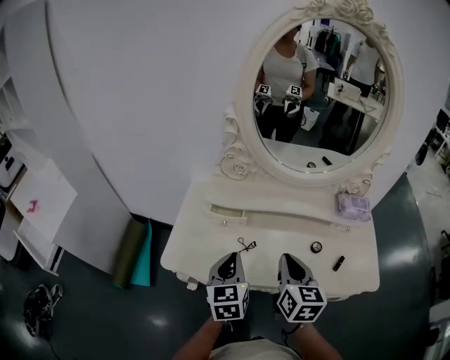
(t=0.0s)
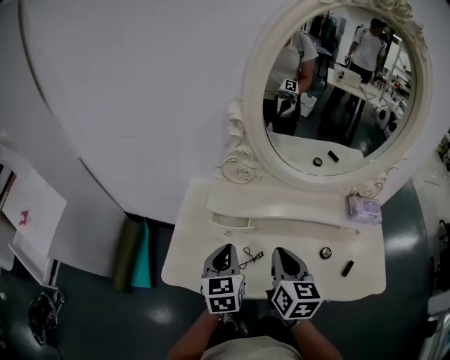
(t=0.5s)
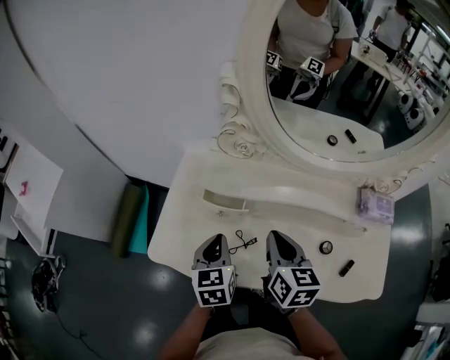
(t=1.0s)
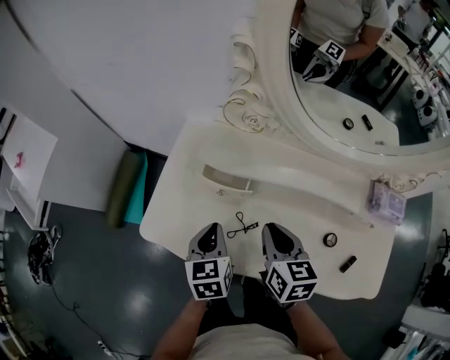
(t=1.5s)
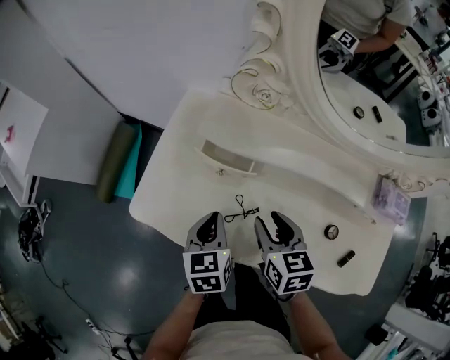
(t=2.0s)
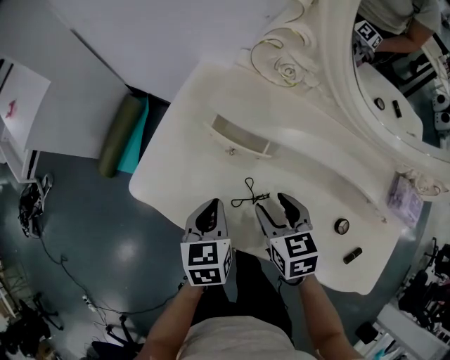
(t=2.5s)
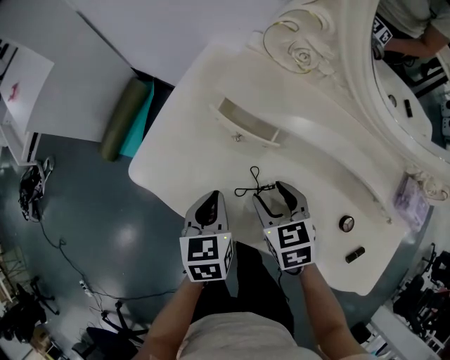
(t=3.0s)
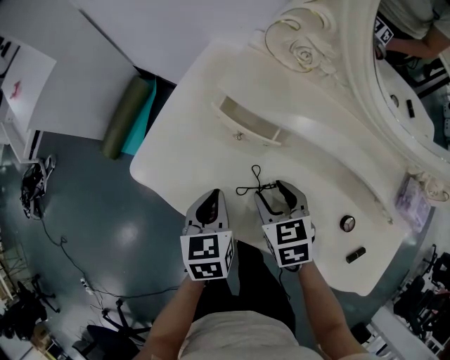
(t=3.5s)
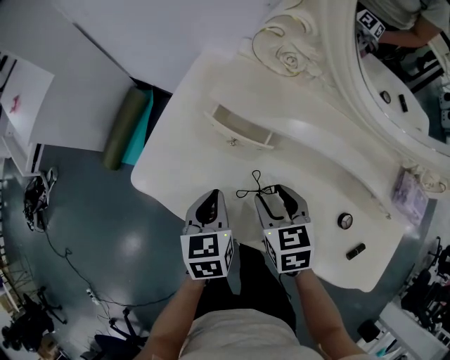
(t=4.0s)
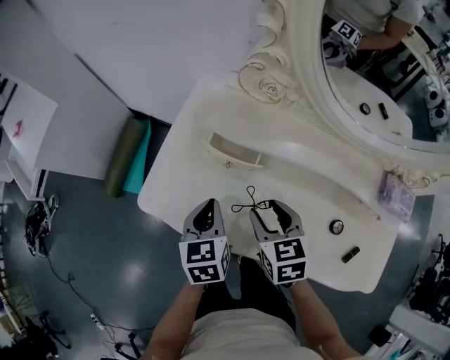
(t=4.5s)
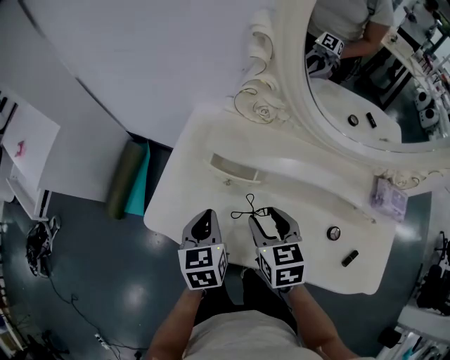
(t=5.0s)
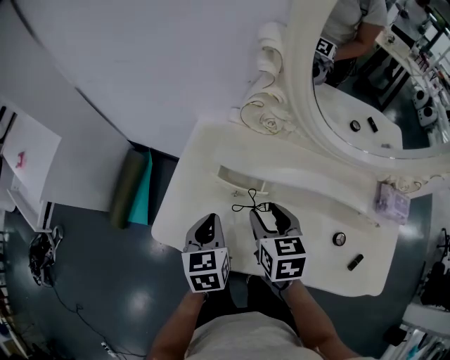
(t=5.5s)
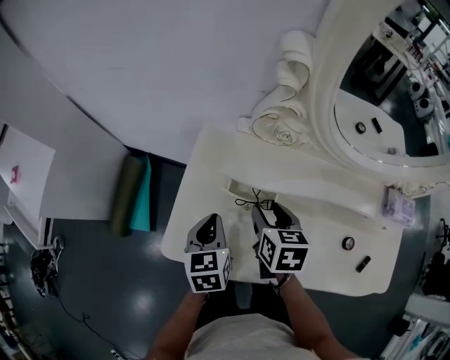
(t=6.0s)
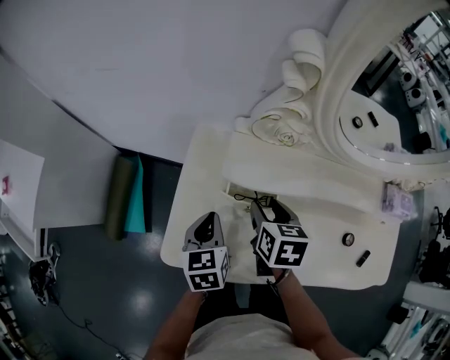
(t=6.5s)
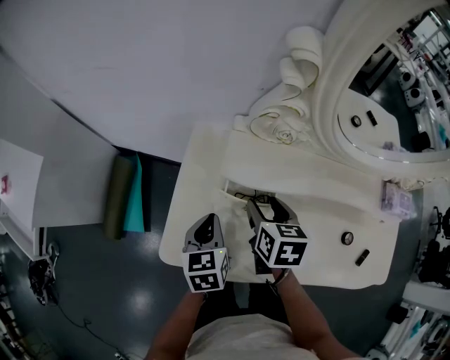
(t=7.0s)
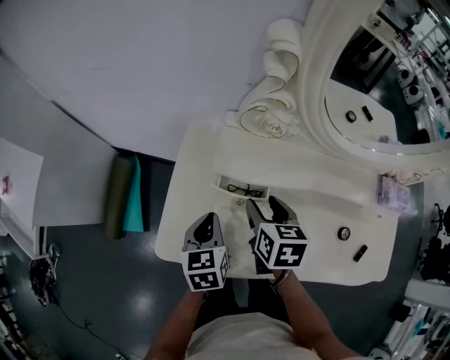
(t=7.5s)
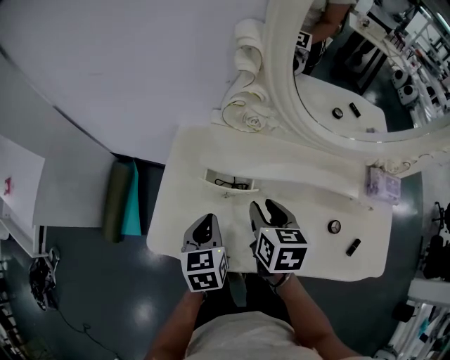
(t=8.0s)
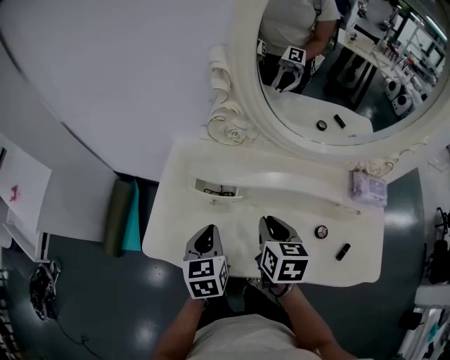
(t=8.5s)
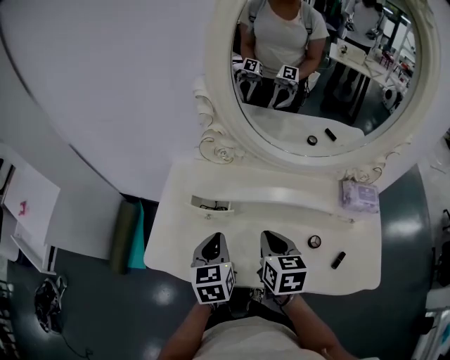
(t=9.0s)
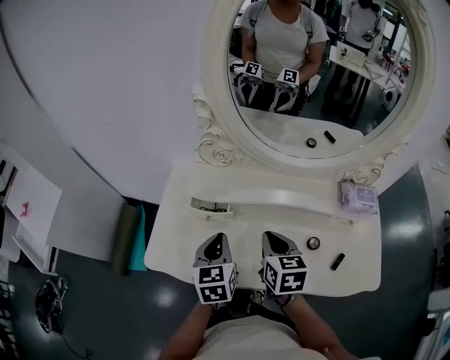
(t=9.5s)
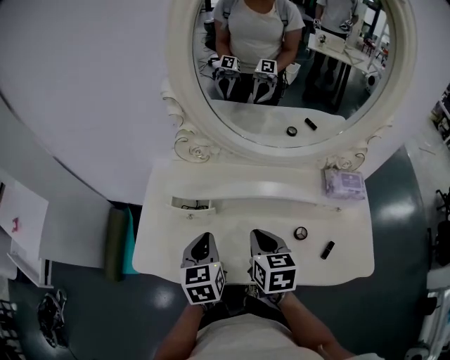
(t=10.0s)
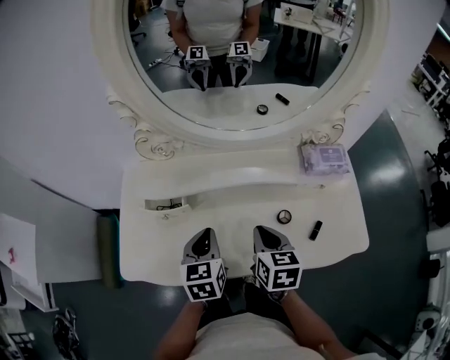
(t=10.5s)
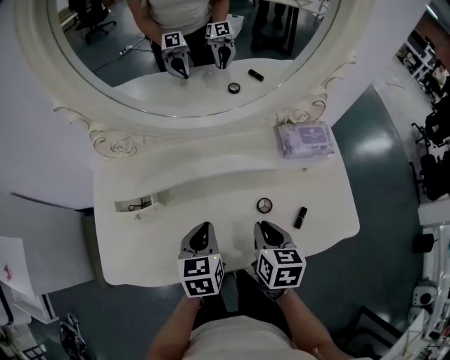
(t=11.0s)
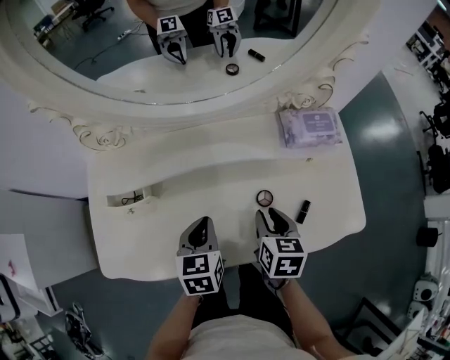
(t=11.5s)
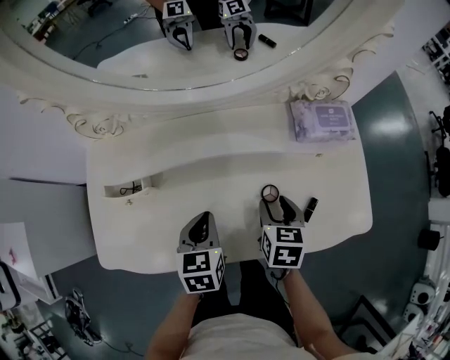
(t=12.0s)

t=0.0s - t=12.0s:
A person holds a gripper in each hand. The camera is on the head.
t=0.0s - t=2.0s: The grippers both shift downward and forward by about 15 cm. The right gripper rotates approximately 30 degrees, and opens, while the left gripper rotates about 20 degrees.
t=4.0s - t=6.0s: The left gripper shifts about 10 cm forward and to the left. Meanwhile the right gripper shifts roughly 10 cm forward and upward, and rotates some 30 degrees.
t=6.0s - t=8.0s: The right gripper ends up roughly 5 cm from where it was. Meanwhile the left gripper moves roughly 5 cm.
t=8.0s - t=10.0s: The right gripper moves to the right and backward, approximately 15 cm, and closes up, while the left gripper goes about 10 cm to the right and upward.
t=10.0s - t=12.0s: The two grippers go about 20 cm to the right and downward. The left gripper changes its angle by some 20 degrees, while the right gripper turns by some 20 degrees, and opens its fingers.

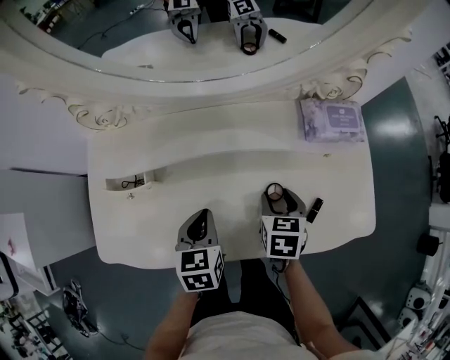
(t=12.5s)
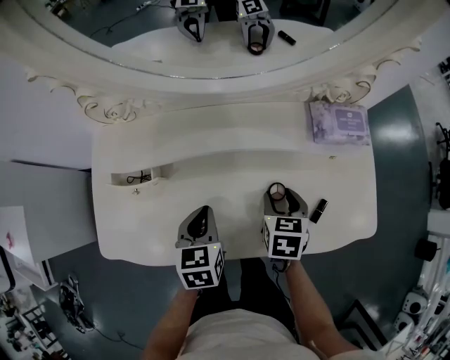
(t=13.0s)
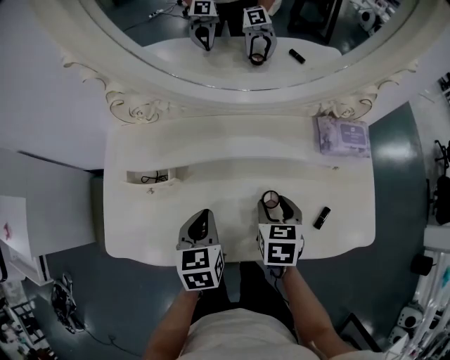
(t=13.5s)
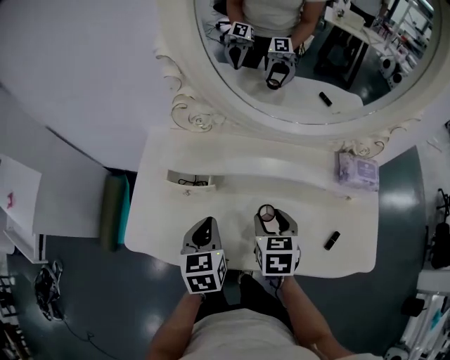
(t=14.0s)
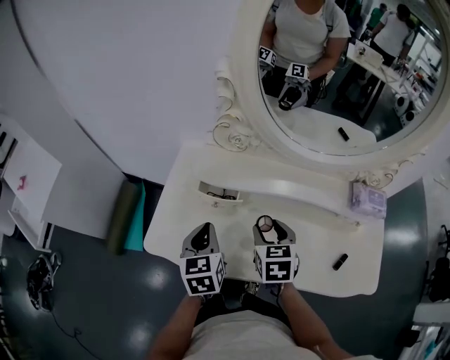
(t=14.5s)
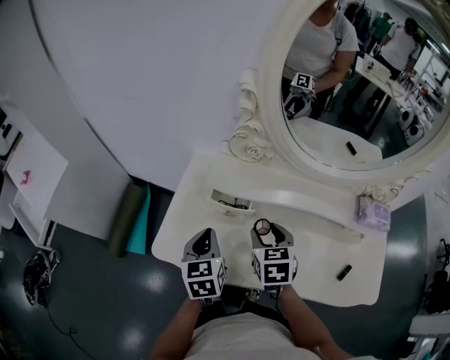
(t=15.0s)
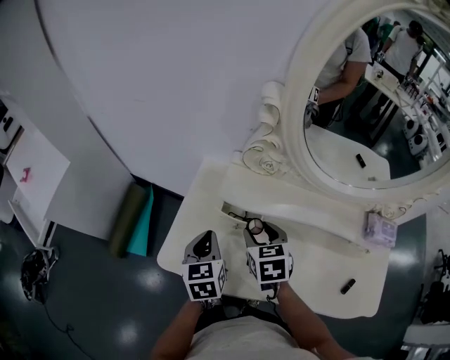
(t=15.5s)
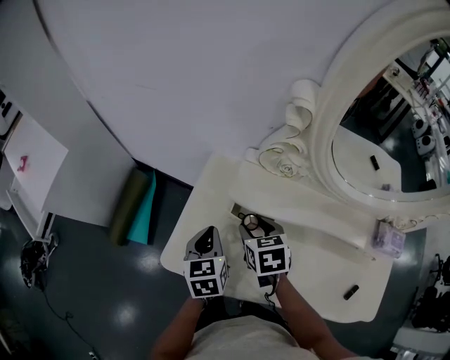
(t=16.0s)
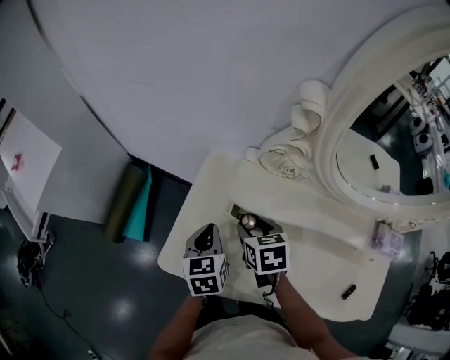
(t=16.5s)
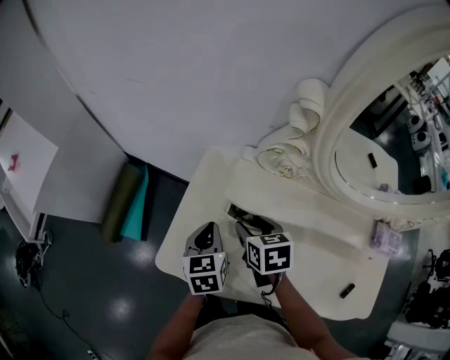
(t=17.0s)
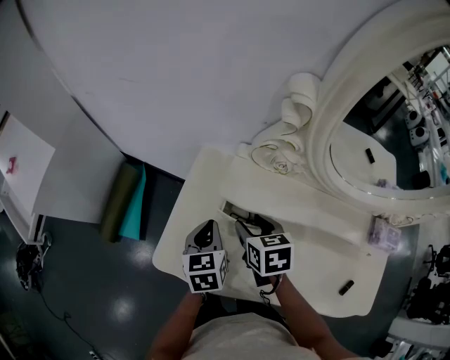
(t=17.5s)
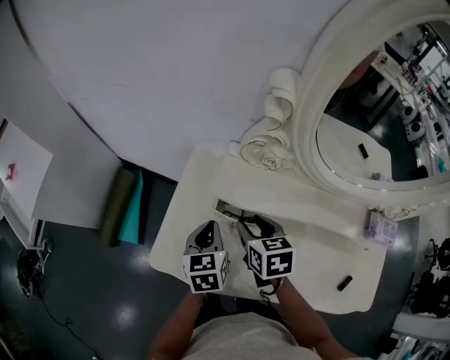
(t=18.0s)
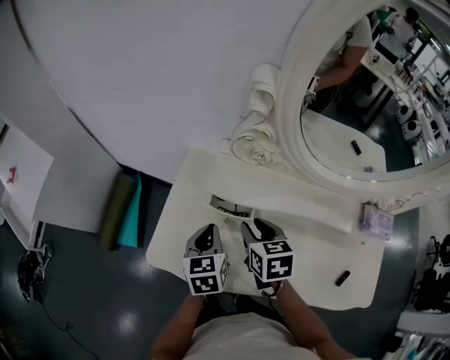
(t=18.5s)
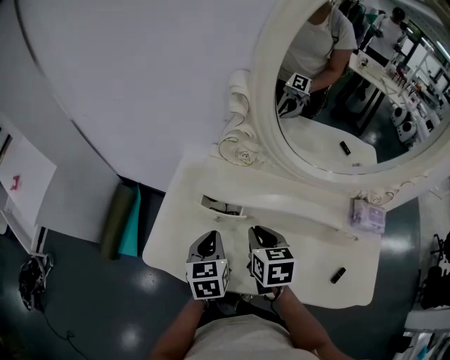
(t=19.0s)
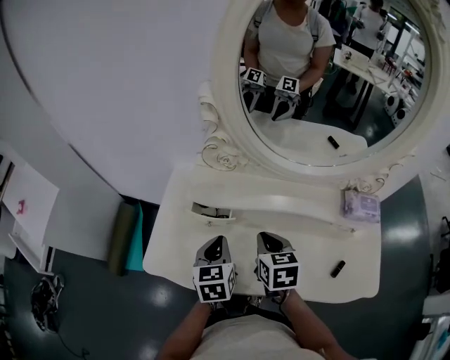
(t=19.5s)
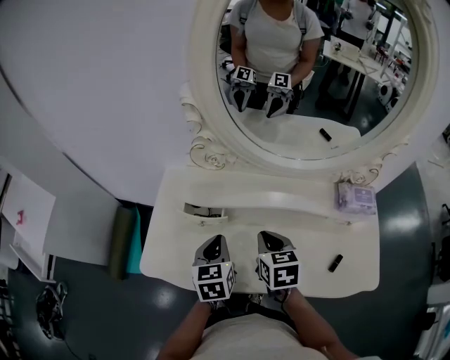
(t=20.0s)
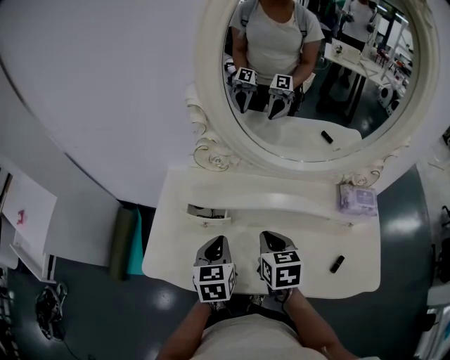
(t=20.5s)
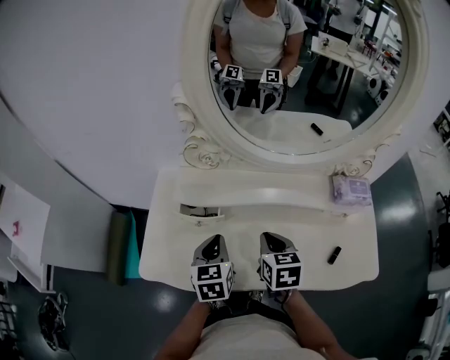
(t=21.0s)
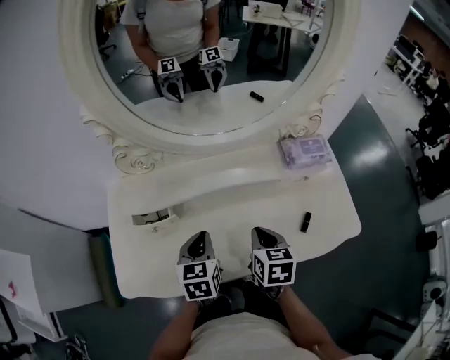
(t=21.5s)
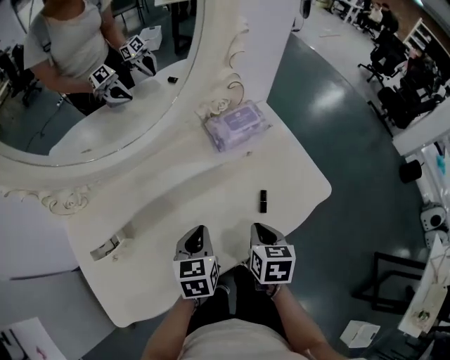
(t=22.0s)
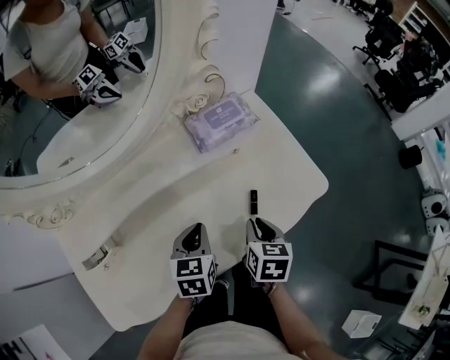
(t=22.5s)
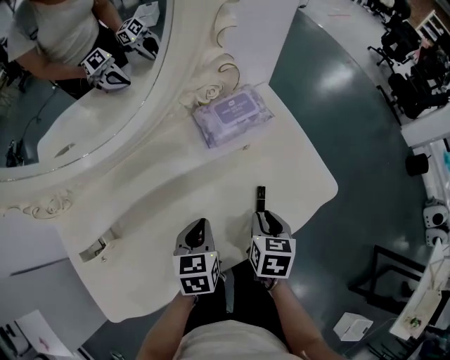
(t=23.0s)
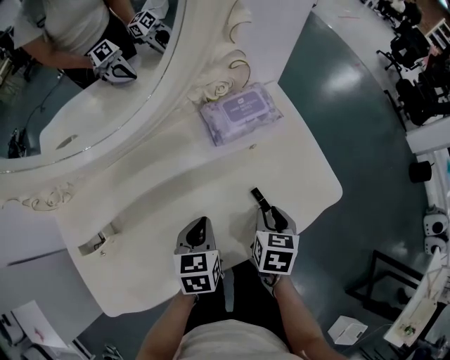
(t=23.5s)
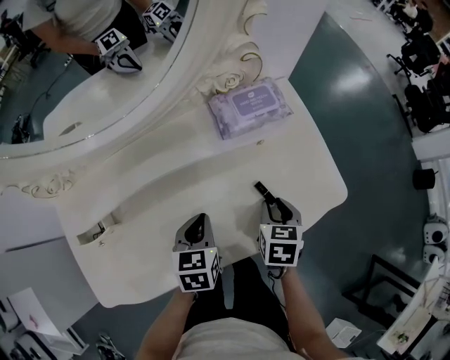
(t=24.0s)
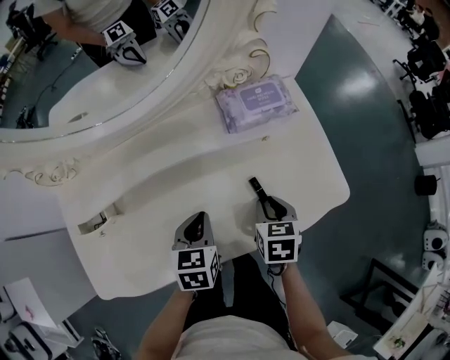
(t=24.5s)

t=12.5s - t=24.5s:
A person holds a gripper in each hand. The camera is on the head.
t=12.5s - t=14.5s: Both grippers travel together to the left and upward, about 25 cm. The right gripper turns by about 30 degrees. The left gripper changes its angle by approximately 30 degrees.
t=14.5s - t=16.5s: The right gripper travels to the left and forward by some 20 cm. Meanwhile the left gripper goes roughly 10 cm forward and to the left.
t=16.5s - t=18.5s: The grippers both shift to the right by roughly 5 cm.
t=18.5s - t=20.5s: The right gripper moves to the right and backward, approximately 15 cm, and closes; the left gripper is displaced to the right by roughly 10 cm.
t=20.5s - t=22.5s: The left gripper shifts by about 30 cm, and changes its angle by roughly 40 degrees. The right gripper shifts by roughly 35 cm, and swivels approximately 50 degrees.
t=22.5s - t=24.5s: The right gripper shifts by approximately 5 cm, and turns by roughly 20 degrees.

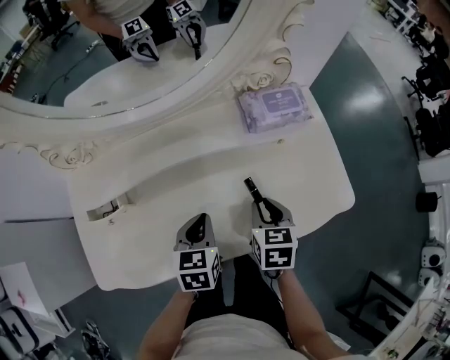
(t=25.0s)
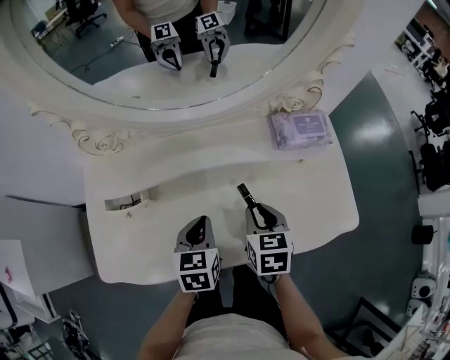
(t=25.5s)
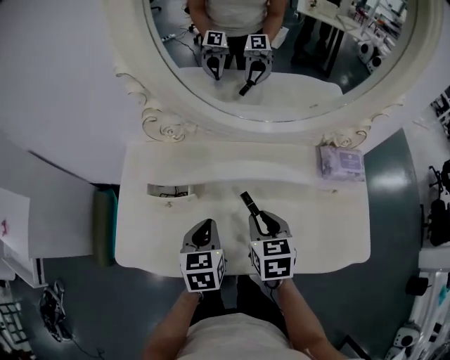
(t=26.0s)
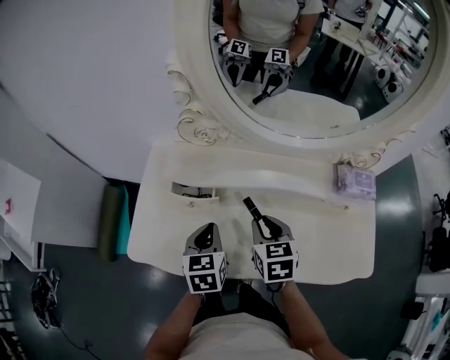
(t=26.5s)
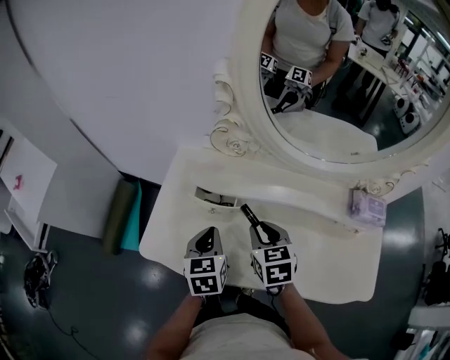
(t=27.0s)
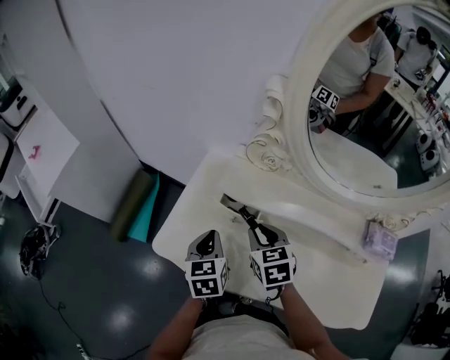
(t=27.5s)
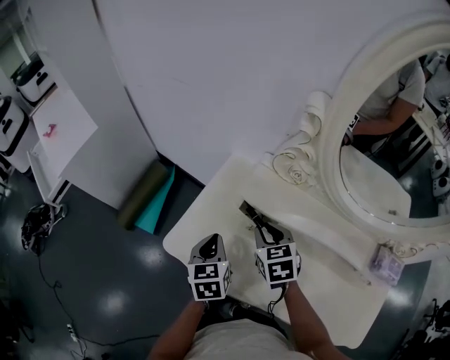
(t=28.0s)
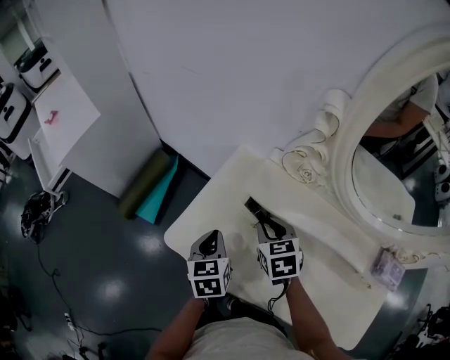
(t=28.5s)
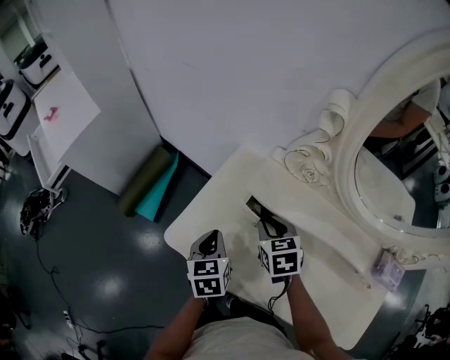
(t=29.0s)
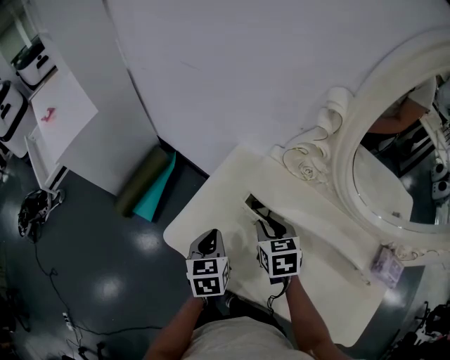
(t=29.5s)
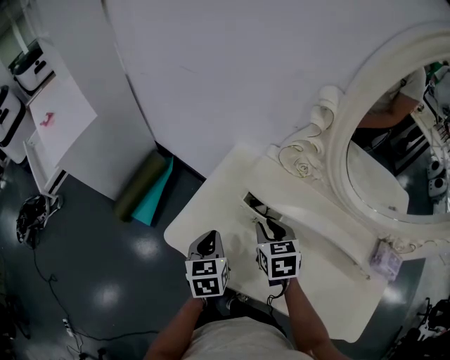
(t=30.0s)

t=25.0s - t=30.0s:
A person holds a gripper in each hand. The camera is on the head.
t=25.0s - t=27.5s: The left gripper moves approximately 35 cm, and turns by some 50 degrees. The right gripper moves about 40 cm, and turns by some 50 degrees.
t=27.5s - t=30.0s: The right gripper moves some 5 cm, while the left gripper shifts roughly 5 cm to the left.
